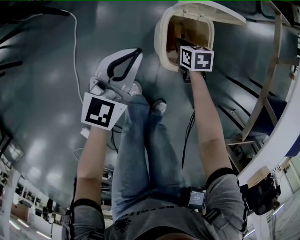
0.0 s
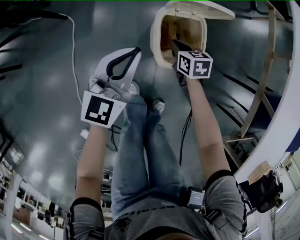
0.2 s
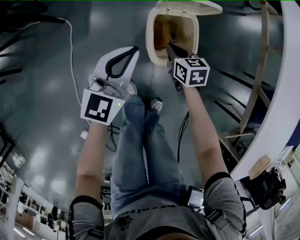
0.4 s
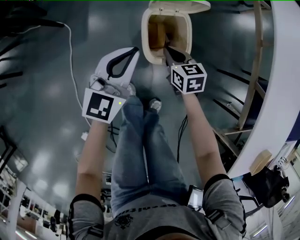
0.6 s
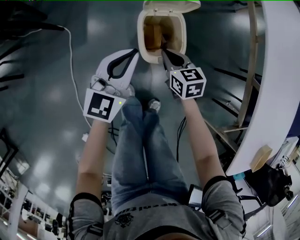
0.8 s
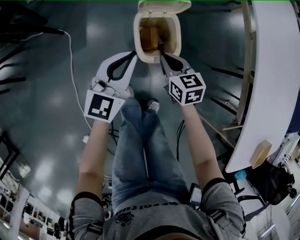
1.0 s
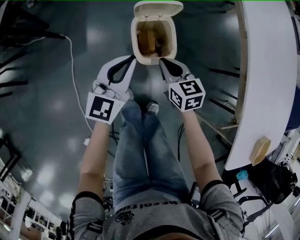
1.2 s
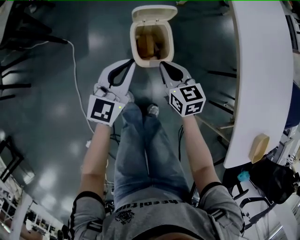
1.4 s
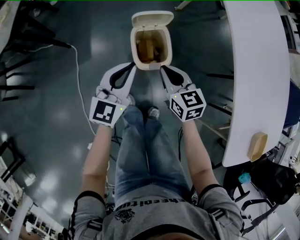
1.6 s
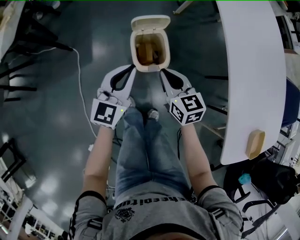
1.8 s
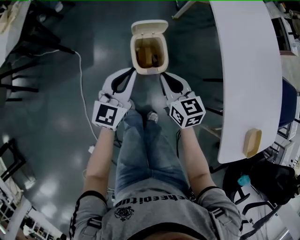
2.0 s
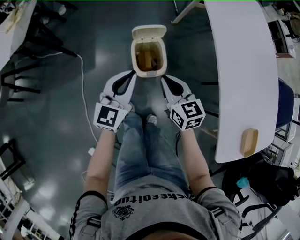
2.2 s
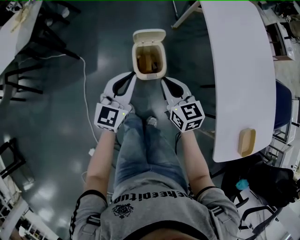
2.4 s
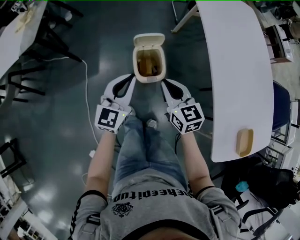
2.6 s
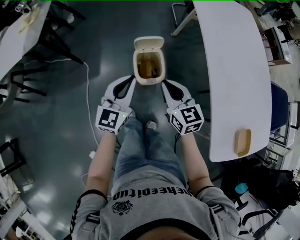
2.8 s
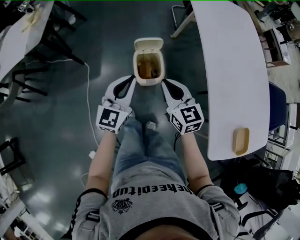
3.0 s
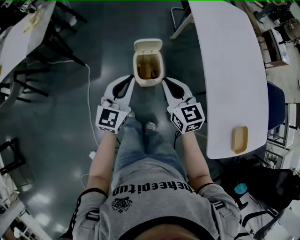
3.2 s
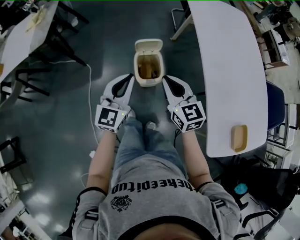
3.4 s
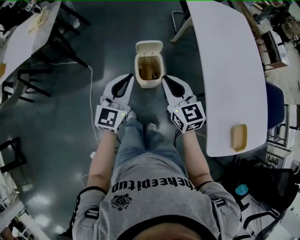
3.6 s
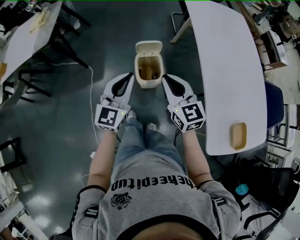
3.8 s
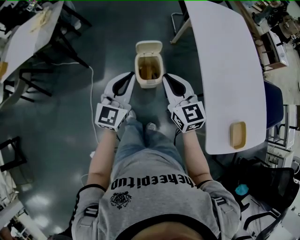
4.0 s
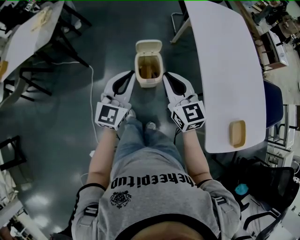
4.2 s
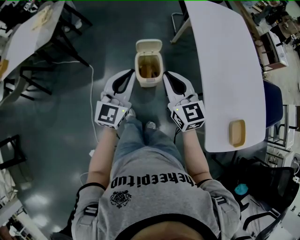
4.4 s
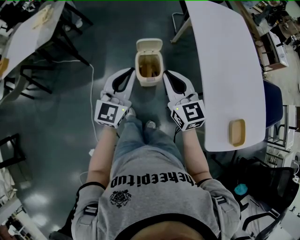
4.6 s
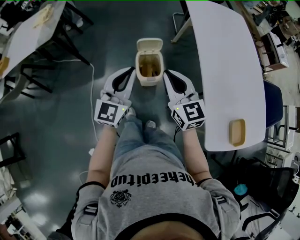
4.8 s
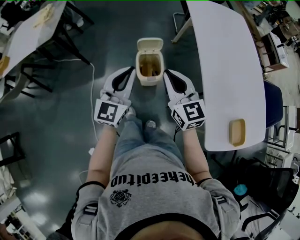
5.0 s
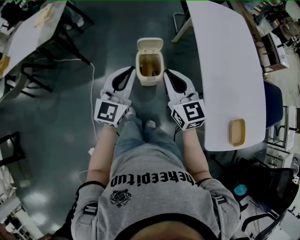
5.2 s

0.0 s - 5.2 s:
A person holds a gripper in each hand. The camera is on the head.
0.0 s - 1.8 s: The left gripper heads upward, to the right and backward, covering about 20 cm. Meanwhile the right gripper goes roughly 35 cm upward and backward, and tilts its fingers about 30 degrees upward.
1.8 s - 3.4 s: The right gripper shifts about 20 cm upward. Meanwhile the left gripper travels upward and backward by approximately 15 cm.
3.4 s - 5.2 s: The grippers both shift upward by some 5 cm.

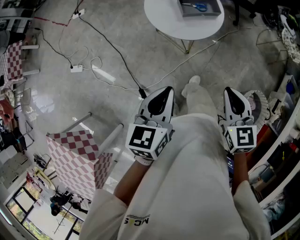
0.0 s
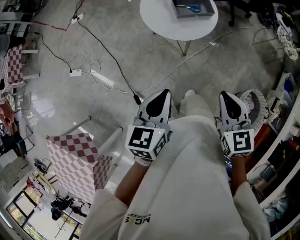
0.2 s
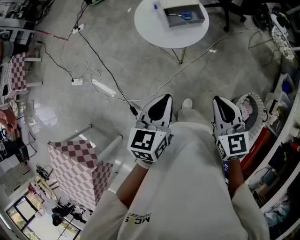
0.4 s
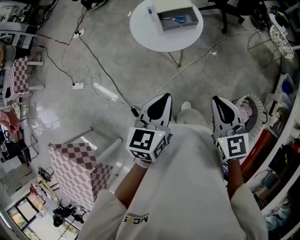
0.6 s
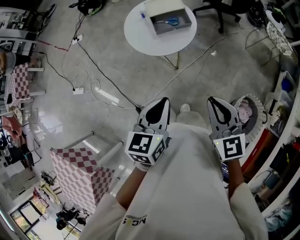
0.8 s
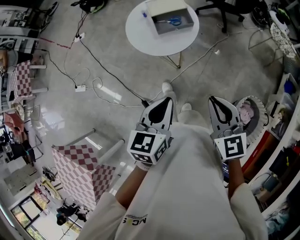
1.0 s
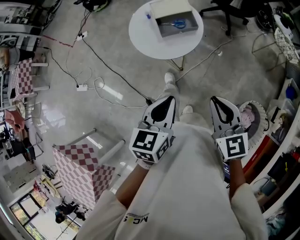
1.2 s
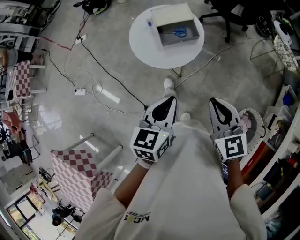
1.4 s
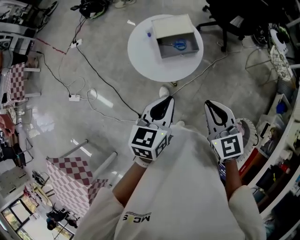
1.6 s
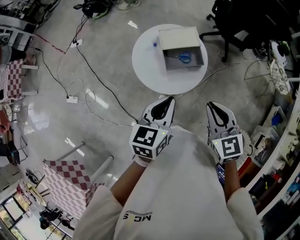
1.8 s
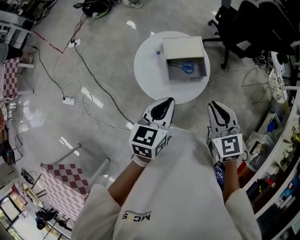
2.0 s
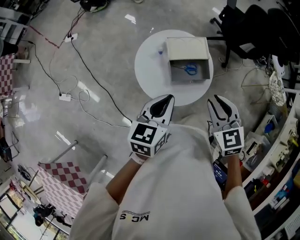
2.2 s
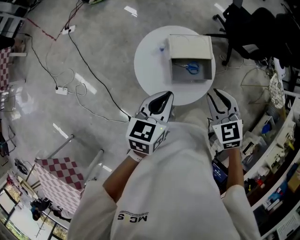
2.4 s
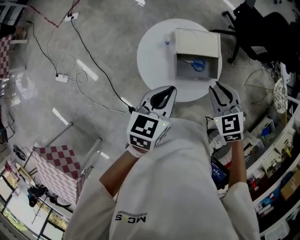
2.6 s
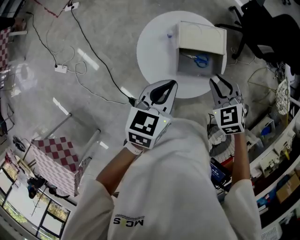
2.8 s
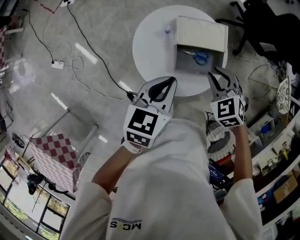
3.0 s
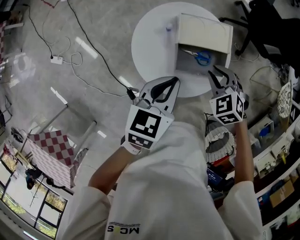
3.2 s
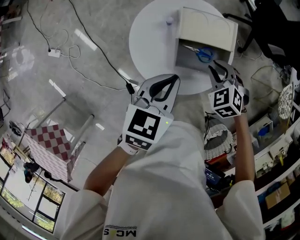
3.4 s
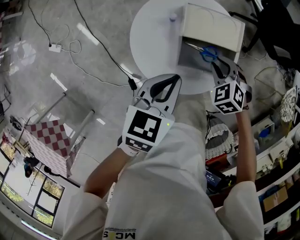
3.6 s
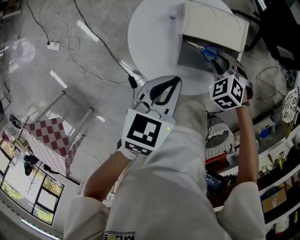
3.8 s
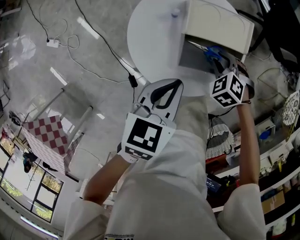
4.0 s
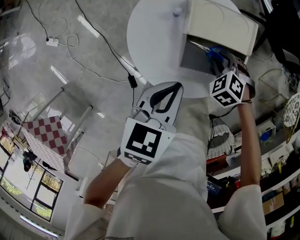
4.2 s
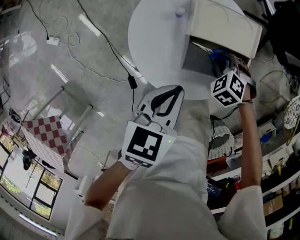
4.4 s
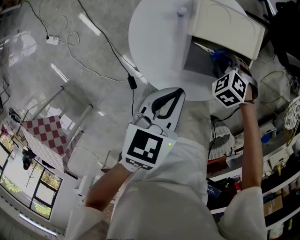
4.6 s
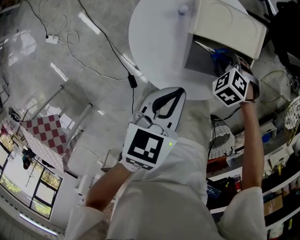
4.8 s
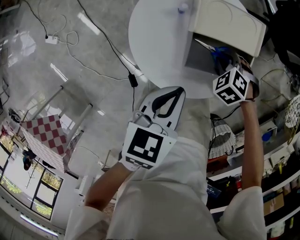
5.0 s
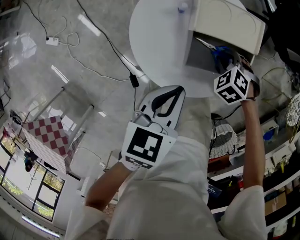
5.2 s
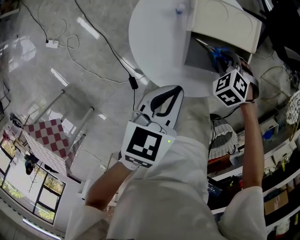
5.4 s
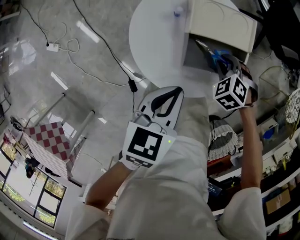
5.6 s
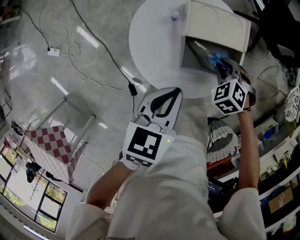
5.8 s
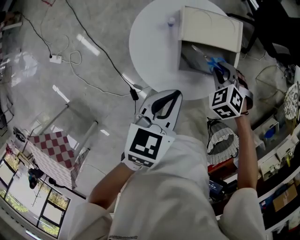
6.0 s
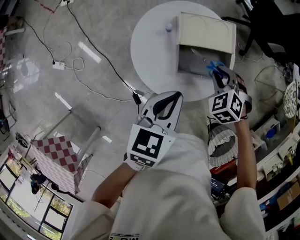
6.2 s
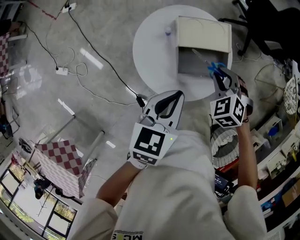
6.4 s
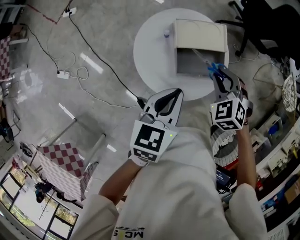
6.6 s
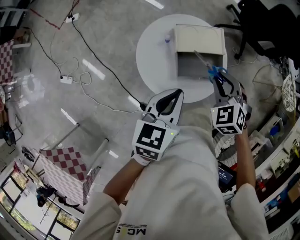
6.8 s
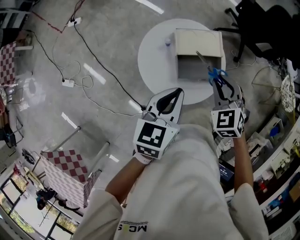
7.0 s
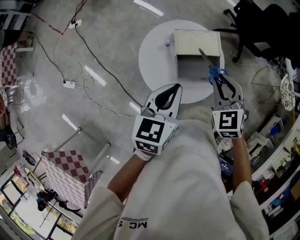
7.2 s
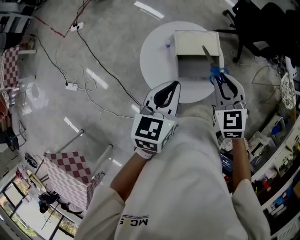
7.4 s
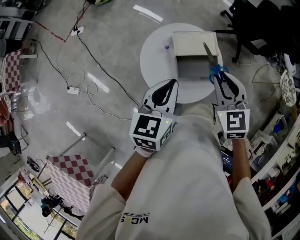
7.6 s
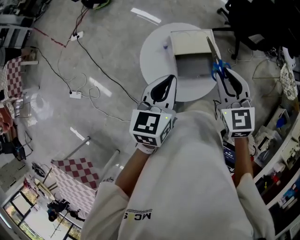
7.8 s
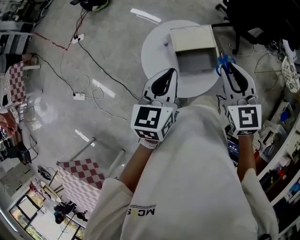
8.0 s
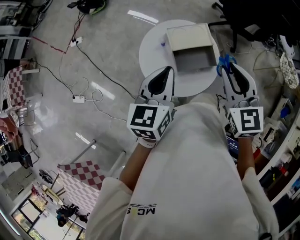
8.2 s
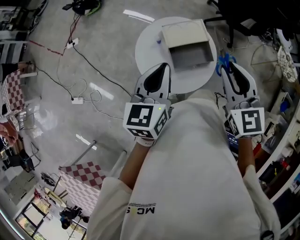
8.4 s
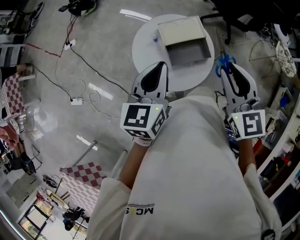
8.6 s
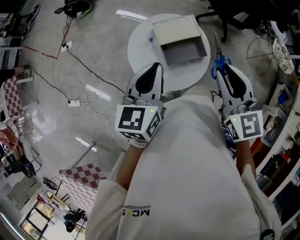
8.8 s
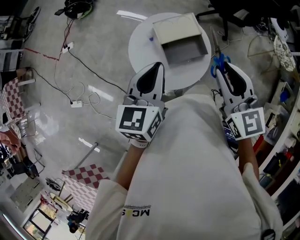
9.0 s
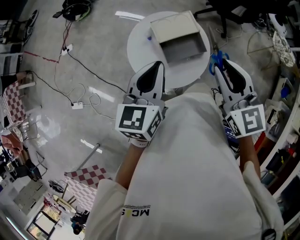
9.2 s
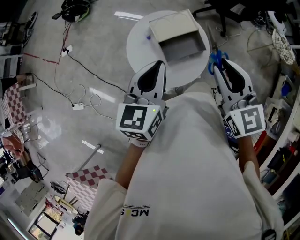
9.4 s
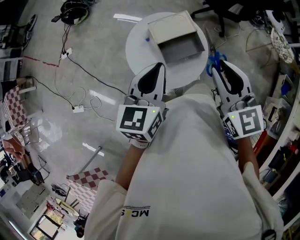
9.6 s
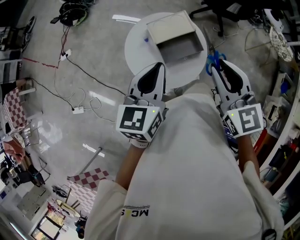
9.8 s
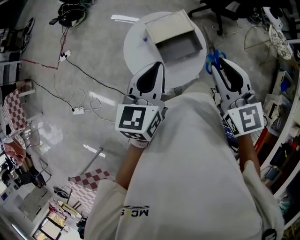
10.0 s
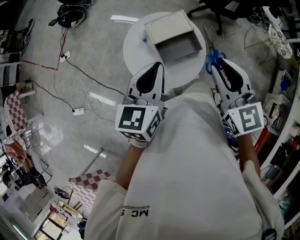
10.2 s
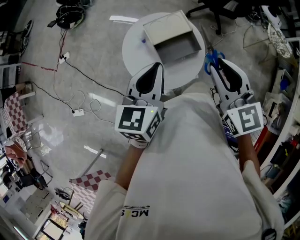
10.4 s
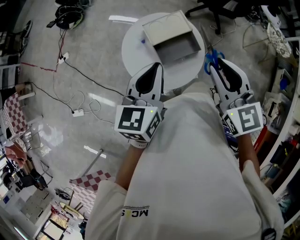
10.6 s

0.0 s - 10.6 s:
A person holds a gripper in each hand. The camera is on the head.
0.0 s - 1.6 s: The left gripper is displaced forward and to the right by about 20 cm. The right gripper goes approximately 15 cm forward.
1.6 s - 3.0 s: The left gripper shifts about 20 cm forward; the right gripper goes roughly 30 cm forward and downward, and rotates roughly 40 degrees.
3.0 s - 4.6 s: The right gripper goes approximately 20 cm downward, and rotates about 30 degrees, while the left gripper moves downward, about 10 cm.
4.6 s - 6.0 s: The right gripper travels upward by about 10 cm.
6.0 s - 7.6 s: The left gripper is displaced upward by about 10 cm; the right gripper travels upward by roughly 25 cm, and tilts its fingers roughly 40 degrees upward.
7.6 s - 9.0 s: The right gripper goes about 10 cm upward and backward, and swivels approximately 20 degrees.
9.0 s - 10.6 s: The grippers stay close to where they were, moving slightly.

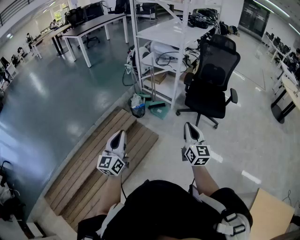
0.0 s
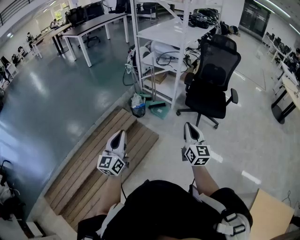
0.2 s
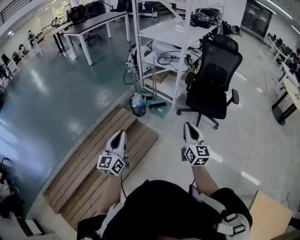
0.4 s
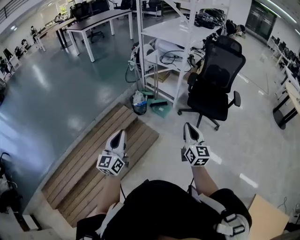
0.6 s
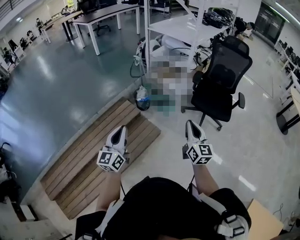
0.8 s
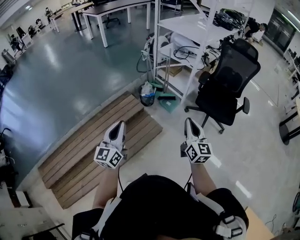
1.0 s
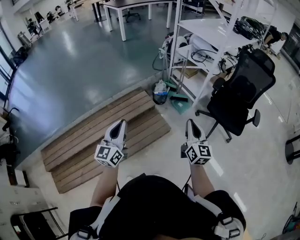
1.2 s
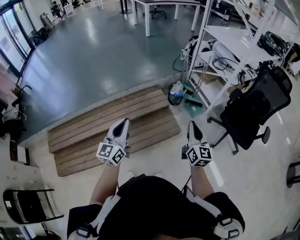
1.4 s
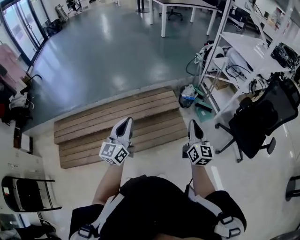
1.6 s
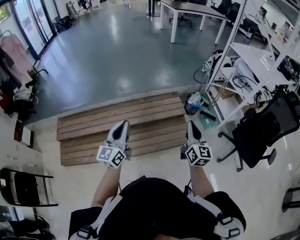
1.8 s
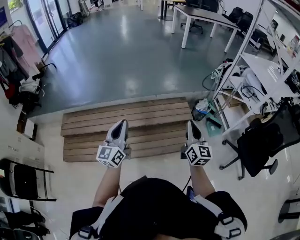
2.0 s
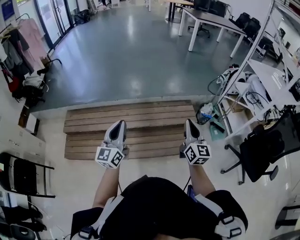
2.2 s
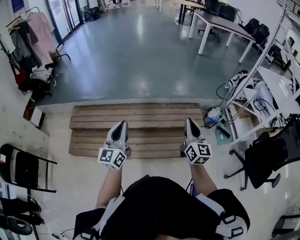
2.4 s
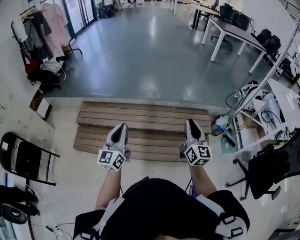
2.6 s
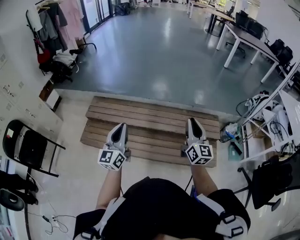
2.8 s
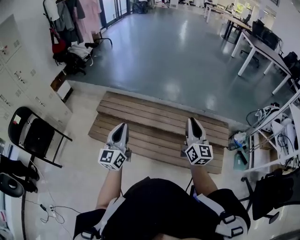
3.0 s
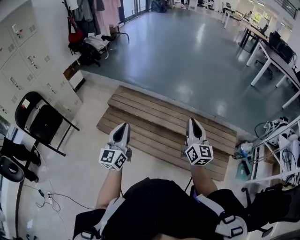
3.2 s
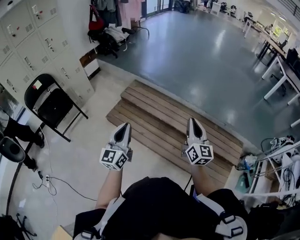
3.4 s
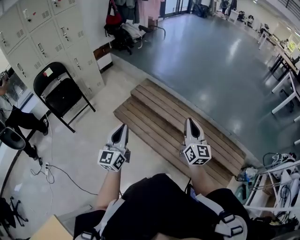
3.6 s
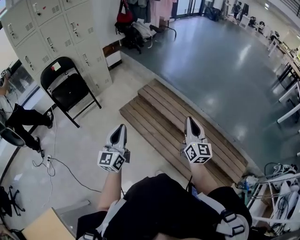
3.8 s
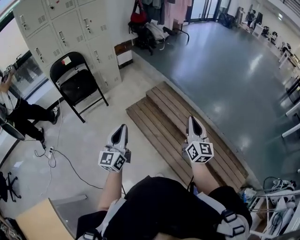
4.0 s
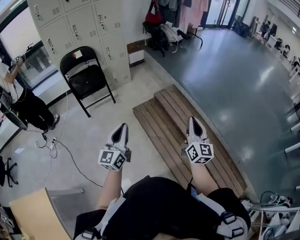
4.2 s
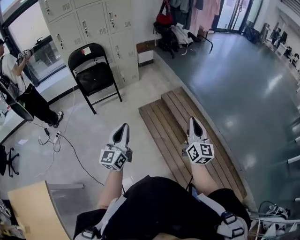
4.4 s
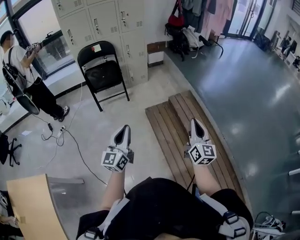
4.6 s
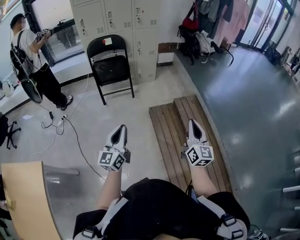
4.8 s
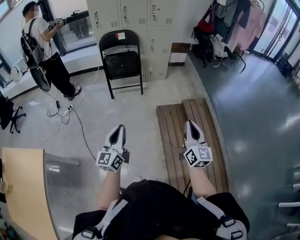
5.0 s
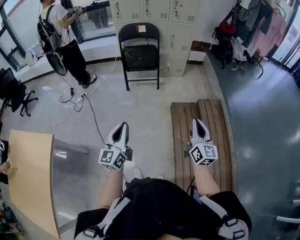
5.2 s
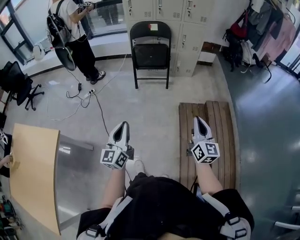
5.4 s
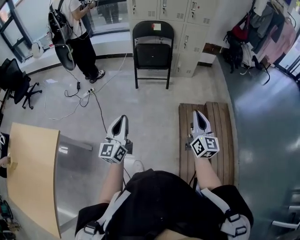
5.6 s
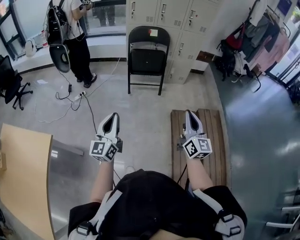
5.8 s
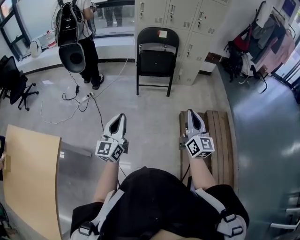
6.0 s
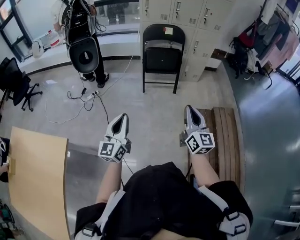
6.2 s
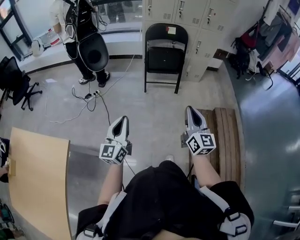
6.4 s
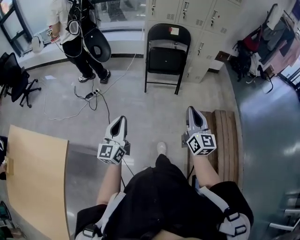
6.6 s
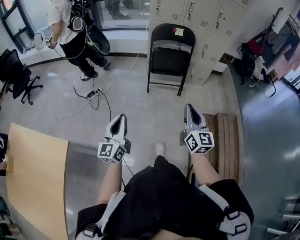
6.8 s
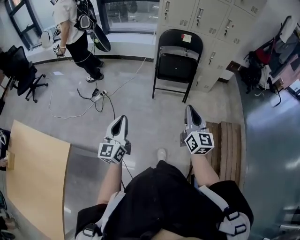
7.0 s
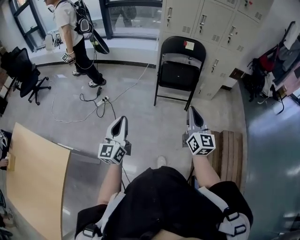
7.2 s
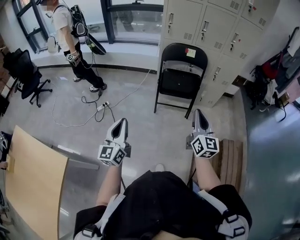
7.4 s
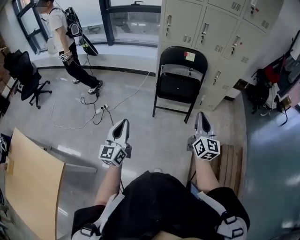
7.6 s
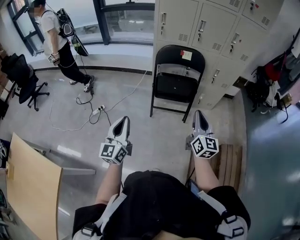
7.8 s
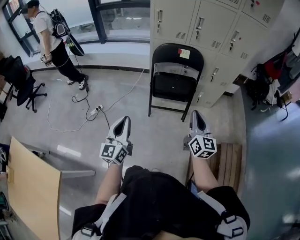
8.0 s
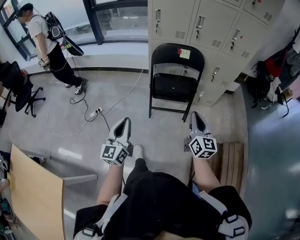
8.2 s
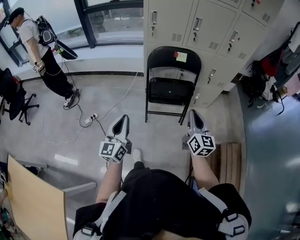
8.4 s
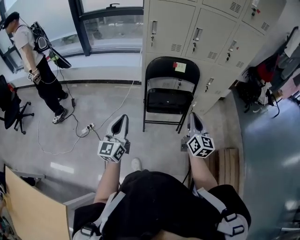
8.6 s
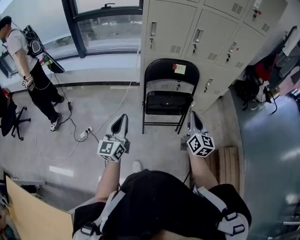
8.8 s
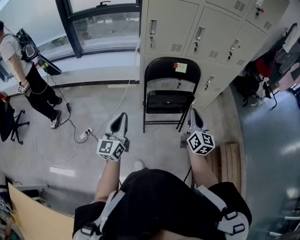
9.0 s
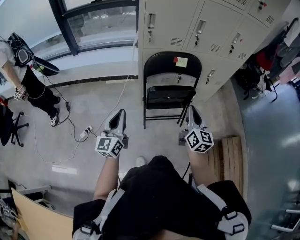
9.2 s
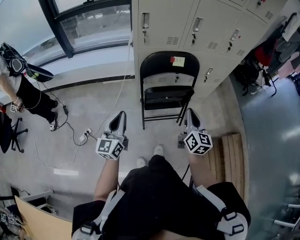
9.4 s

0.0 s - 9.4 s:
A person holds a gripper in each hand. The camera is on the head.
0.0 s - 1.6 s: The left gripper moves about 15 cm, and rotates some 30 degrees, while the right gripper ends up roughly 20 cm from where it was, and rotates roughly 30 degrees.
1.6 s - 3.2 s: The pair of grippers is taken about 50 cm. The right gripper changes its angle by about 40 degrees, while the left gripper rotates about 50 degrees.
3.2 s - 4.8 s: The right gripper changes place by some 35 cm, and changes its angle by about 50 degrees. The left gripper changes place by about 25 cm, and turns by roughly 50 degrees.
4.8 s - 6.2 s: The left gripper shifts approximately 30 cm to the left. The right gripper travels to the left and forward by roughly 35 cm, and turns by about 20 degrees.
6.2 s - 7.8 s: The grippers both shift forward by roughly 30 cm.
7.8 s - 9.4 s: The right gripper travels forward and to the left by roughly 25 cm. Meanwhile the left gripper is displaced forward by roughly 30 cm.
